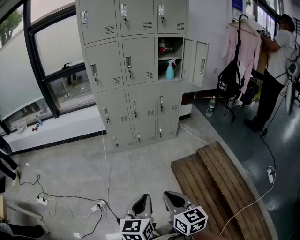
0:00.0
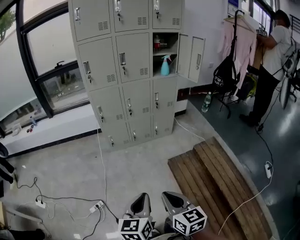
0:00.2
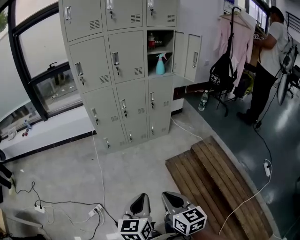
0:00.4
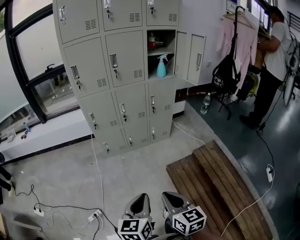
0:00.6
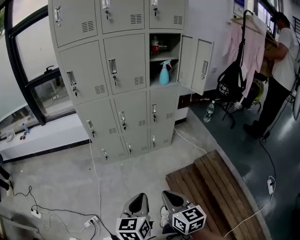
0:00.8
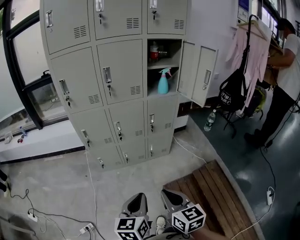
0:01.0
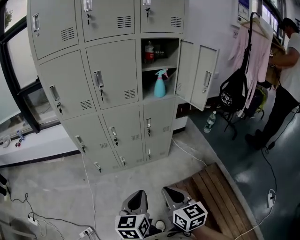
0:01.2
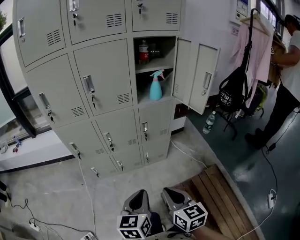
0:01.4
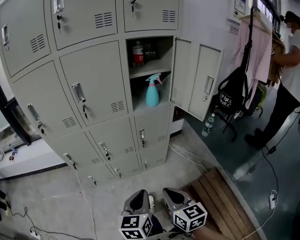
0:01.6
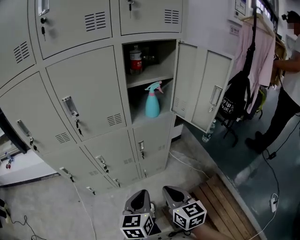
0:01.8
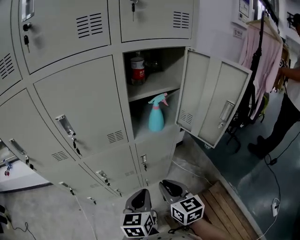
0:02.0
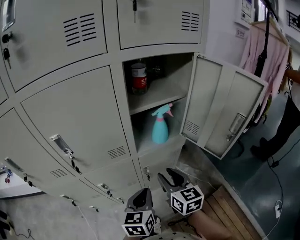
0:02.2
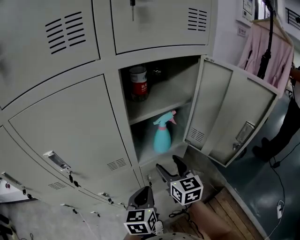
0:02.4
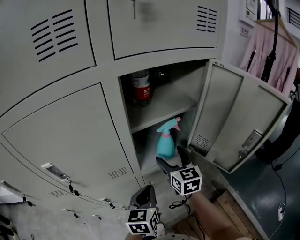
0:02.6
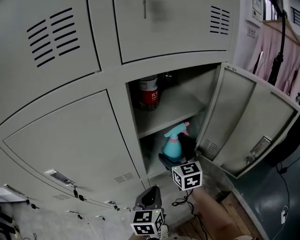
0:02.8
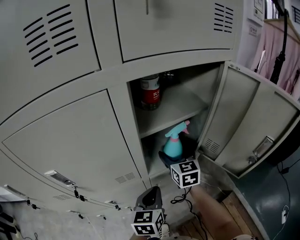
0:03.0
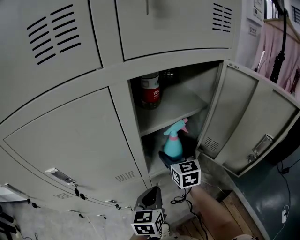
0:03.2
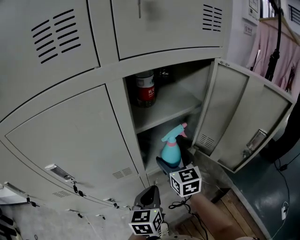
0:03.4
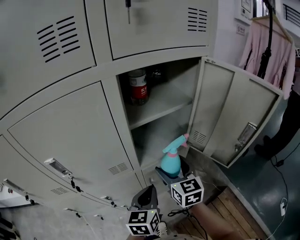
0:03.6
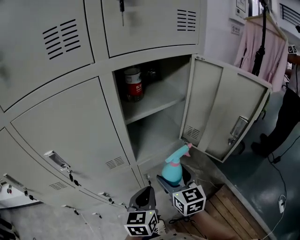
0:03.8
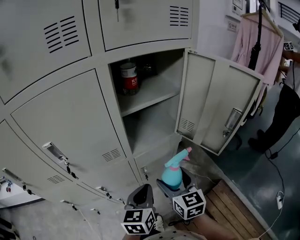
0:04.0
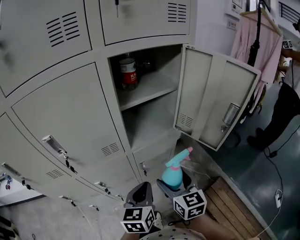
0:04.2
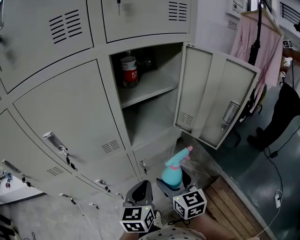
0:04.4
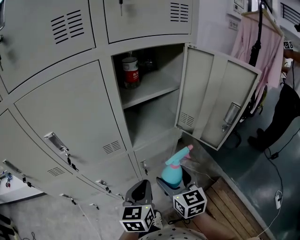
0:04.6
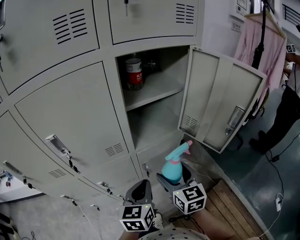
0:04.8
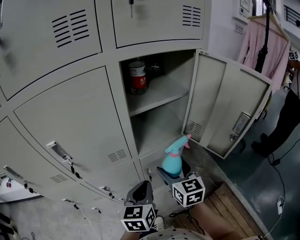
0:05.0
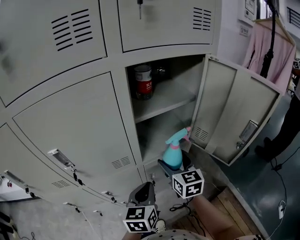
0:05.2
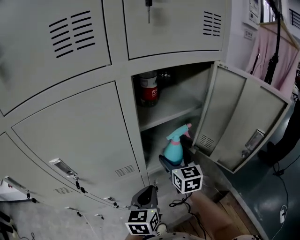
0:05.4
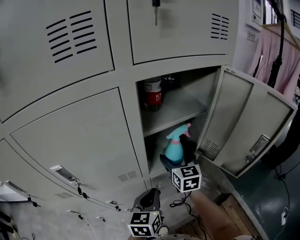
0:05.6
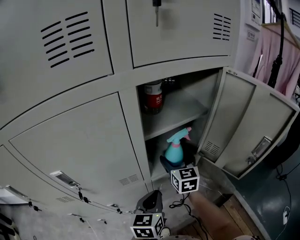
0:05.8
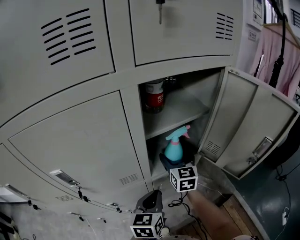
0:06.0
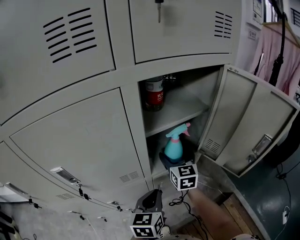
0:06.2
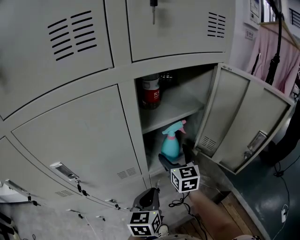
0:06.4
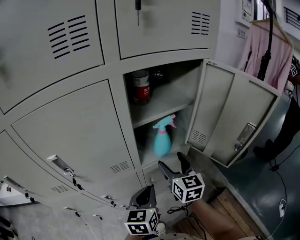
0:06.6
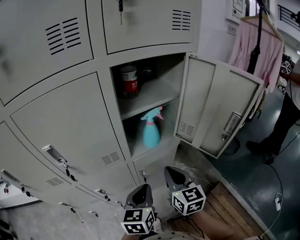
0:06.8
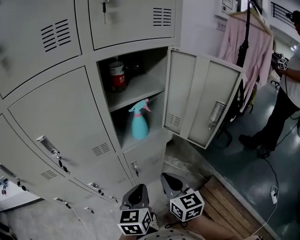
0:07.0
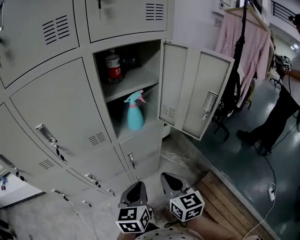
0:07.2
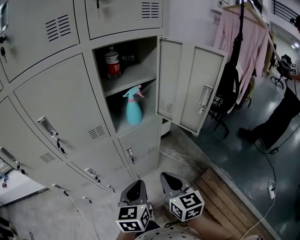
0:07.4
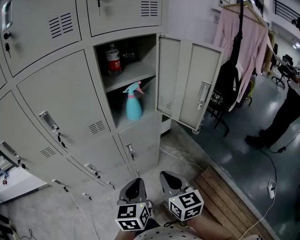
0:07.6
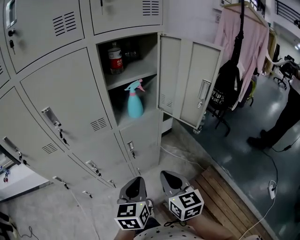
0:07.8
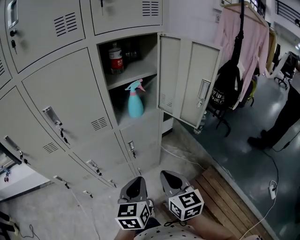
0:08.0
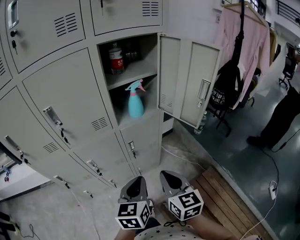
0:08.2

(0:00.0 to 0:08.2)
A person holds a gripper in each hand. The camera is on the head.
0:00.0 - 0:01.6: Both grippers are carried forward, approximately 50 cm.
0:01.6 - 0:03.2: The grippers both shift forward by approximately 50 cm. The right gripper opens.
0:03.2 - 0:05.0: The right gripper moves backward, about 15 cm. Meanwhile the left gripper shifts some 5 cm backward.
0:05.0 - 0:06.6: The right gripper heads forward, covering approximately 5 cm.
0:06.6 - 0:08.2: The right gripper goes some 30 cm backward, and closes; the left gripper goes about 20 cm backward.

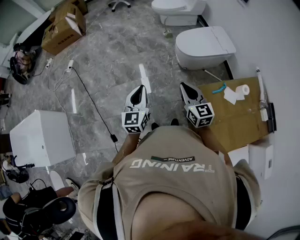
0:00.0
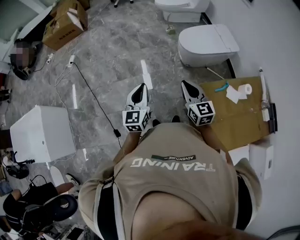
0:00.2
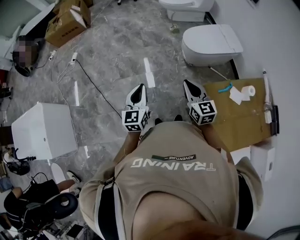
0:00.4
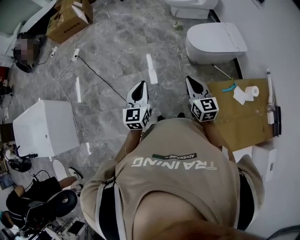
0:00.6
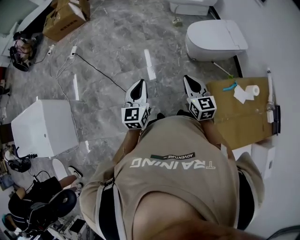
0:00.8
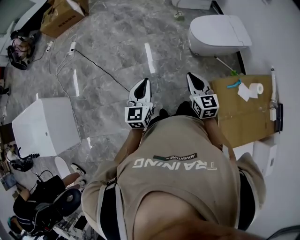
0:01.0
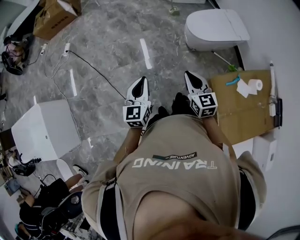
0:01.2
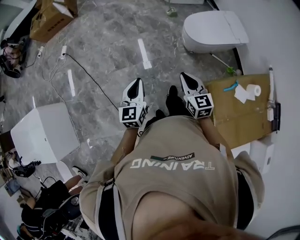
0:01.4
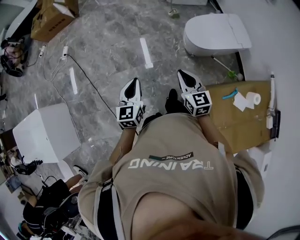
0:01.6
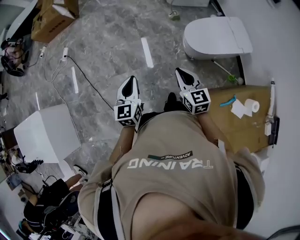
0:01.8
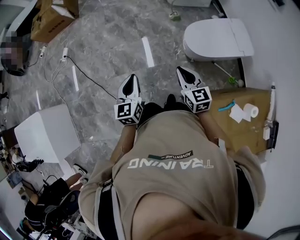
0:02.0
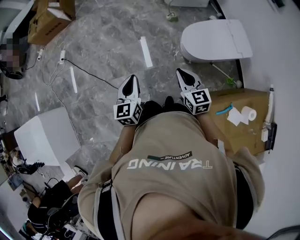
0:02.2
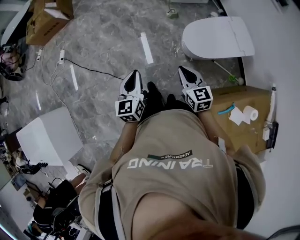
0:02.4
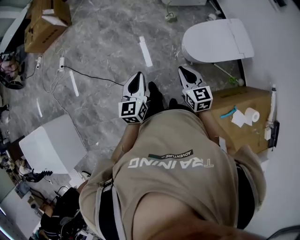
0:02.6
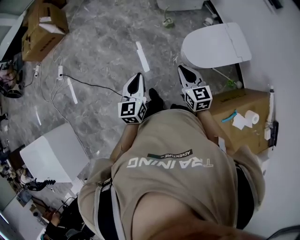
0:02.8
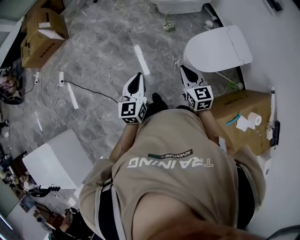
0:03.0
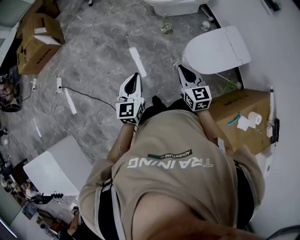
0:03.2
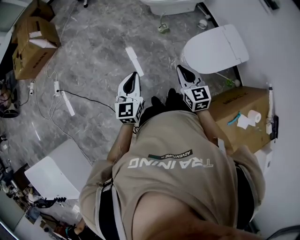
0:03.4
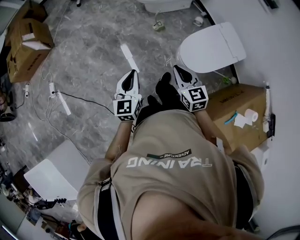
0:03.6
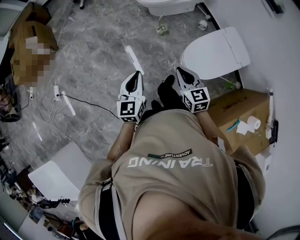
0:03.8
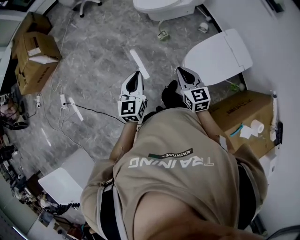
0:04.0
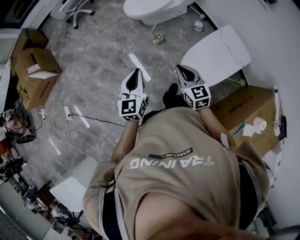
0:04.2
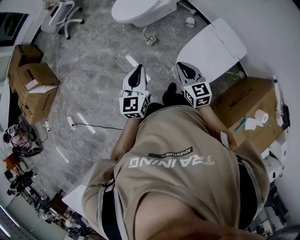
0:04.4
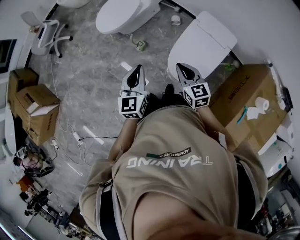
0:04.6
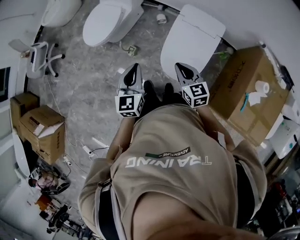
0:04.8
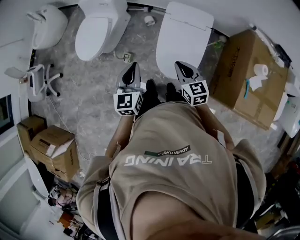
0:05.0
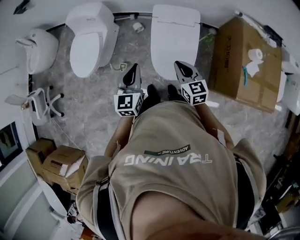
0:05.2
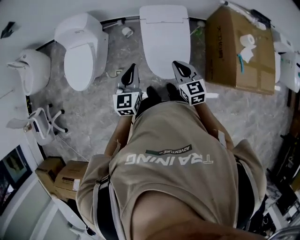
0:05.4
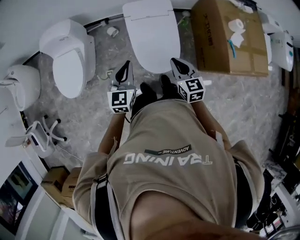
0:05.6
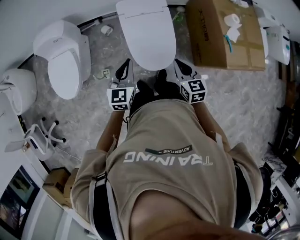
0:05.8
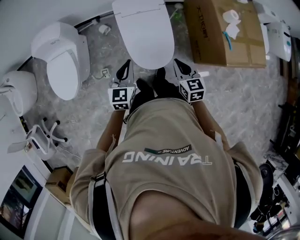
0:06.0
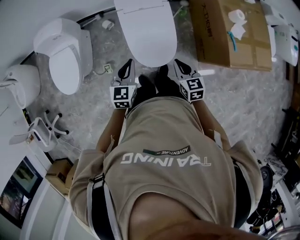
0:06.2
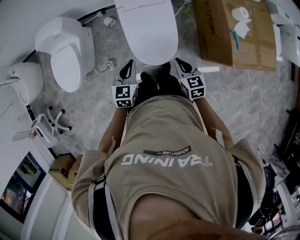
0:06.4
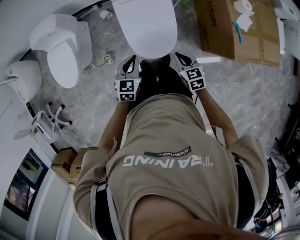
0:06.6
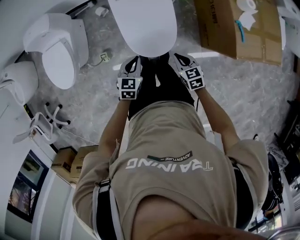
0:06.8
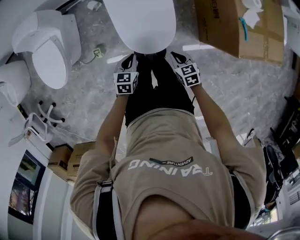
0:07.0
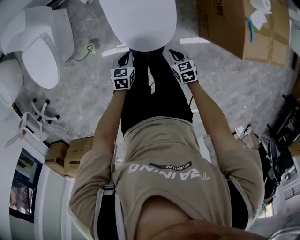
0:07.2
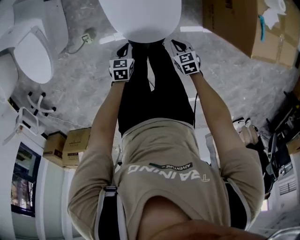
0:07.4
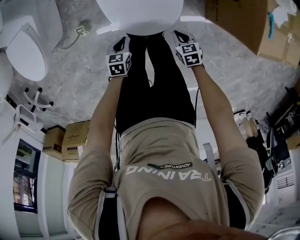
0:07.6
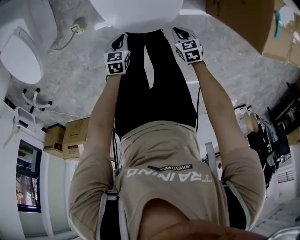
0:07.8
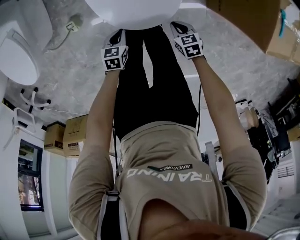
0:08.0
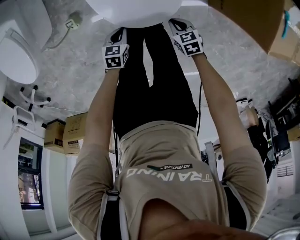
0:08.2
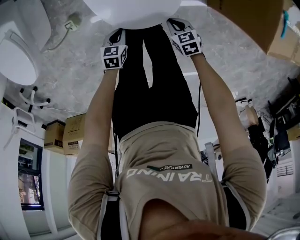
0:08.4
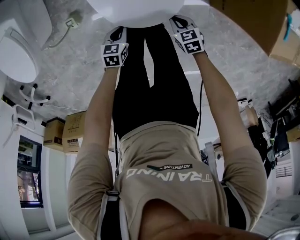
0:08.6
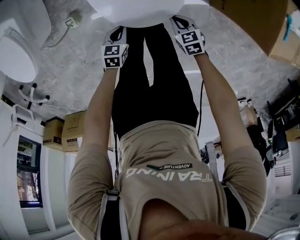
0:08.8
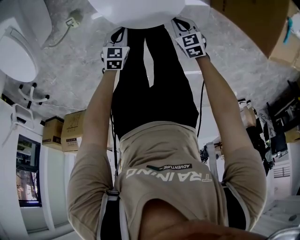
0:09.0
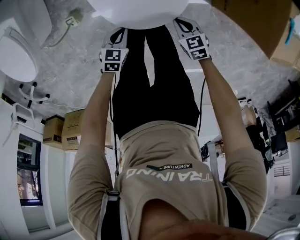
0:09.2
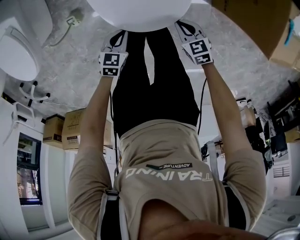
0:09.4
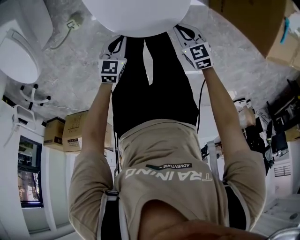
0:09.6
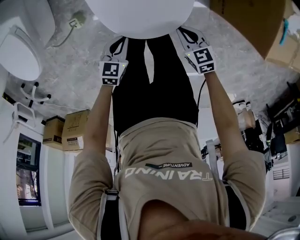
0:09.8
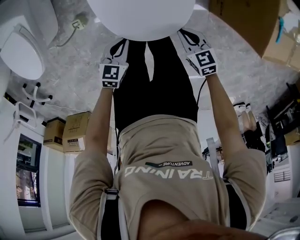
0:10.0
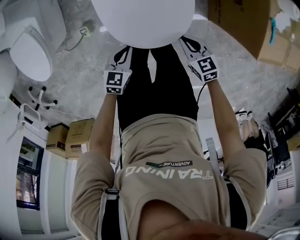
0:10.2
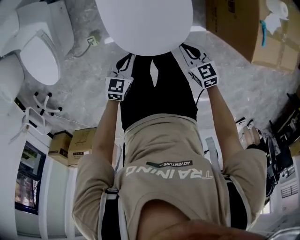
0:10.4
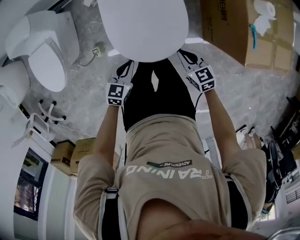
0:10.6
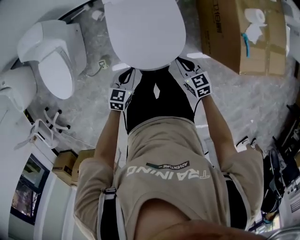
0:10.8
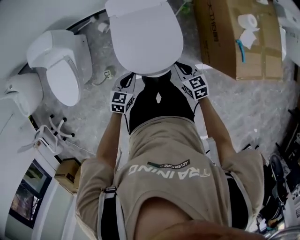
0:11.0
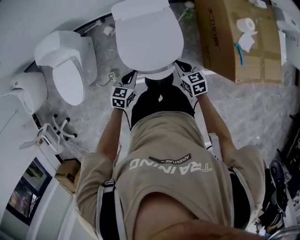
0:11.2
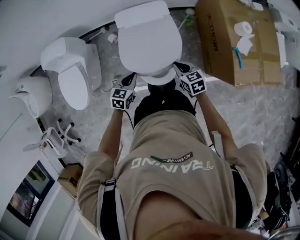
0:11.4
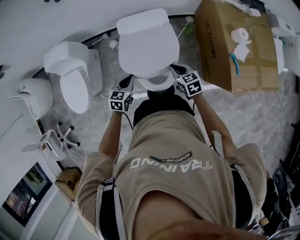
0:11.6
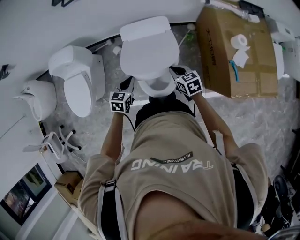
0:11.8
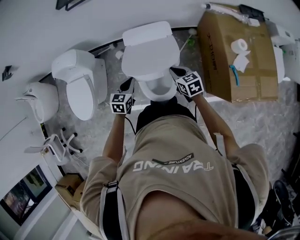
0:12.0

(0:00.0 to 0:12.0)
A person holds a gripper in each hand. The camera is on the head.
0:00.0 - 0:01.6: Both grippers travel together forward, approximately 20 cm.
0:01.6 - 0:03.0: Both grippers travel together forward, roughly 30 cm.
0:03.0 - 0:04.4: The left gripper travels forward and to the right by some 35 cm, and turns by approximately 20 degrees, while the right gripper moves forward, roughly 25 cm.
0:04.4 - 0:06.0: The right gripper shifts by about 15 cm, and rotates about 60 degrees. Meanwhile the left gripper ends up approximately 25 cm from where it was, and rotates about 70 degrees.
0:06.0 - 0:07.6: Both grippers move downward, approximately 40 cm. The right gripper turns by approximately 30 degrees; the left gripper points its fingers approximately 40 degrees further downward.
0:07.6 - 0:09.0: The left gripper heads downward, covering about 5 cm.
0:09.0 - 0:10.4: The grippers both shift upward by some 20 cm.
0:10.4 - 0:12.0: Both grippers move upward and forward, roughly 25 cm.

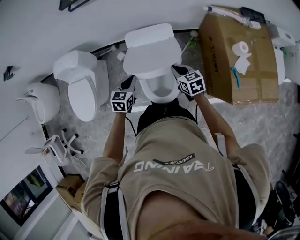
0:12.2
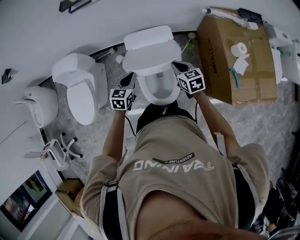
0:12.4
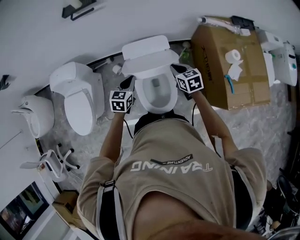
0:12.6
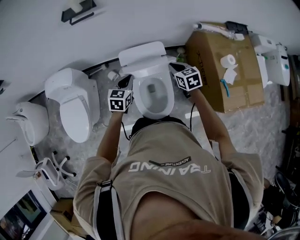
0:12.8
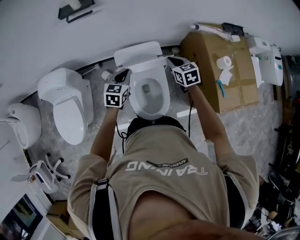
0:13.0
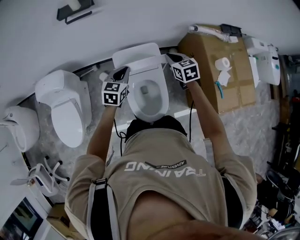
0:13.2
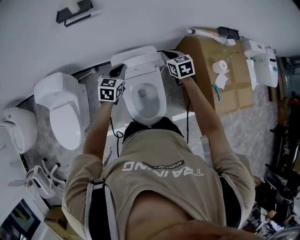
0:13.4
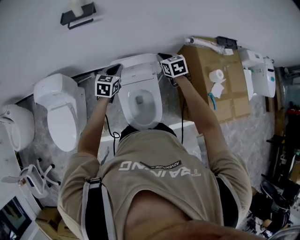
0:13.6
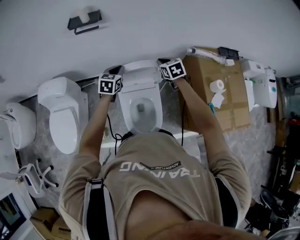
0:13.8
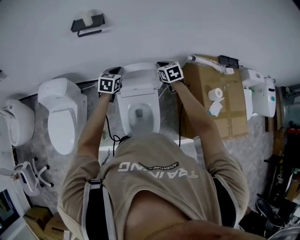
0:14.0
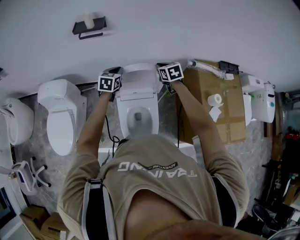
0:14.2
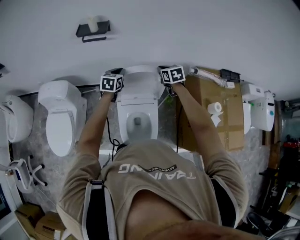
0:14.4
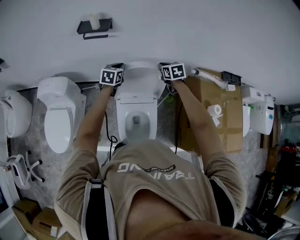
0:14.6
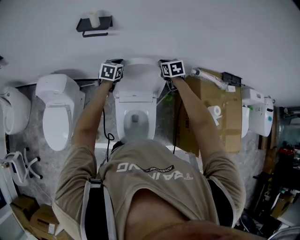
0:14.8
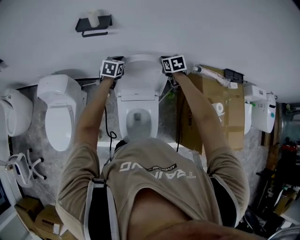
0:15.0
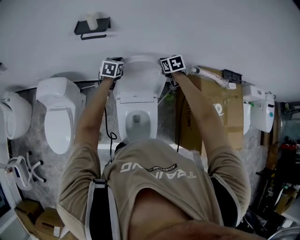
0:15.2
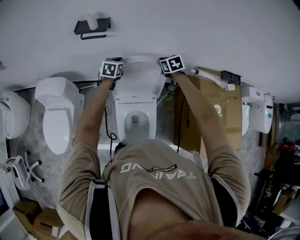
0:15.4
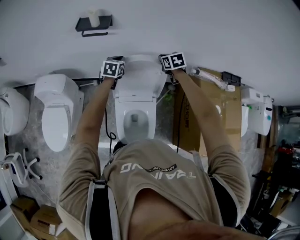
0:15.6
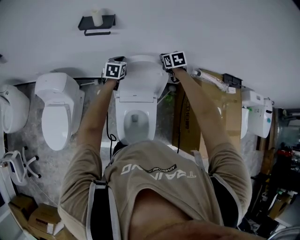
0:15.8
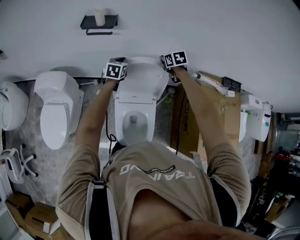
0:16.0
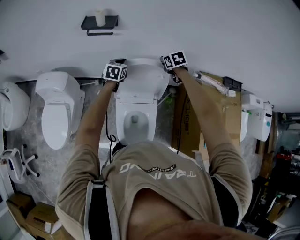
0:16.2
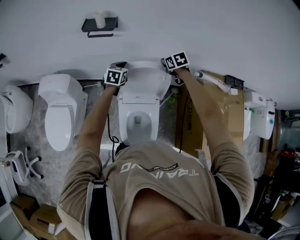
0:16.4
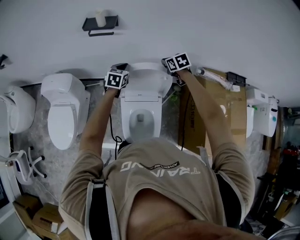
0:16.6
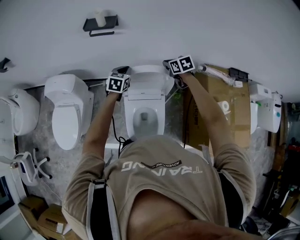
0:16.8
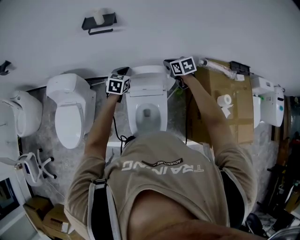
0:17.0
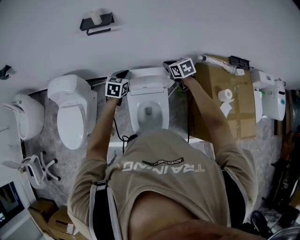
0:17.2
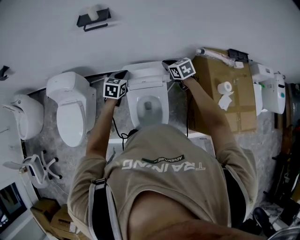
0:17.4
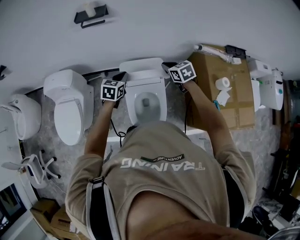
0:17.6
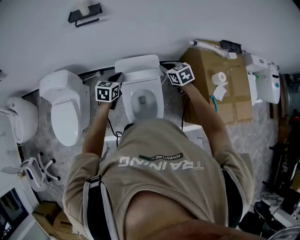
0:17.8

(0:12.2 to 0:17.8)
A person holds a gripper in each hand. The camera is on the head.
0:12.2 - 0:13.6: The left gripper goes some 20 cm forward and upward. The right gripper goes some 20 cm forward.
0:13.6 - 0:15.0: The two grippers go about 15 cm forward.
0:15.0 - 0:16.4: The grippers make only small movements.
0:16.4 - 0:17.8: Both grippers move backward, some 20 cm.
